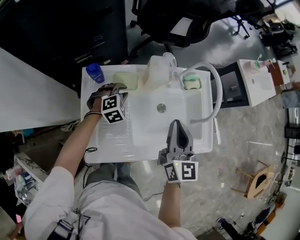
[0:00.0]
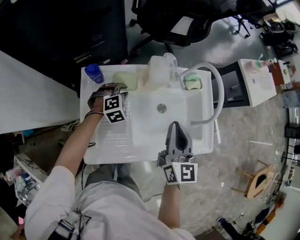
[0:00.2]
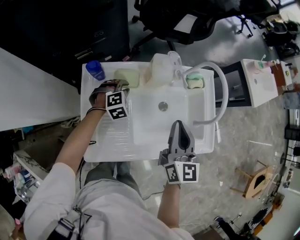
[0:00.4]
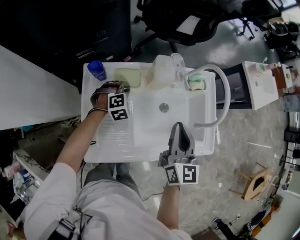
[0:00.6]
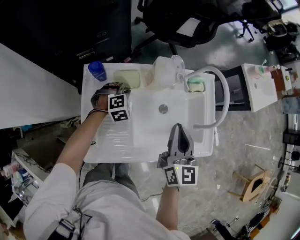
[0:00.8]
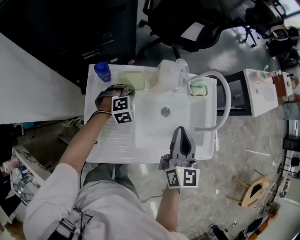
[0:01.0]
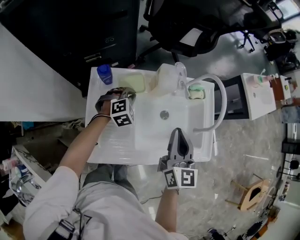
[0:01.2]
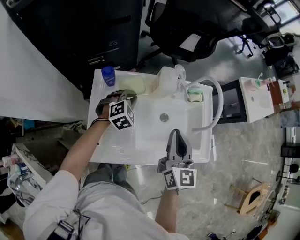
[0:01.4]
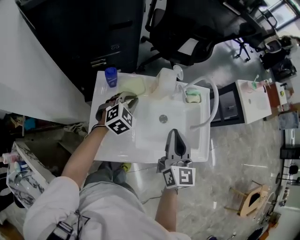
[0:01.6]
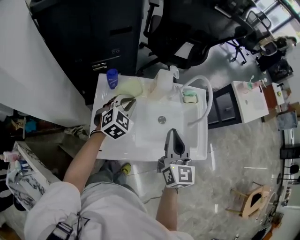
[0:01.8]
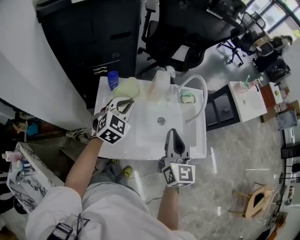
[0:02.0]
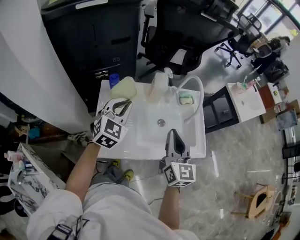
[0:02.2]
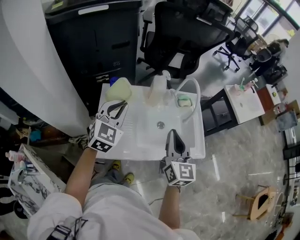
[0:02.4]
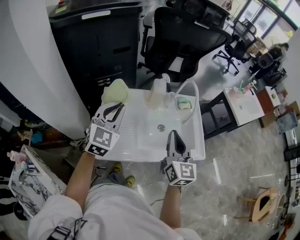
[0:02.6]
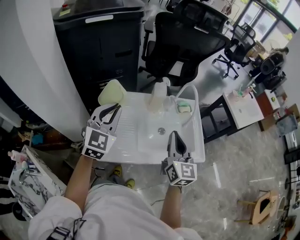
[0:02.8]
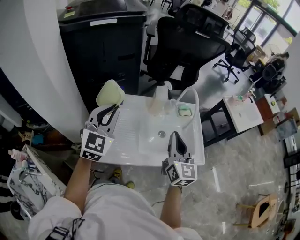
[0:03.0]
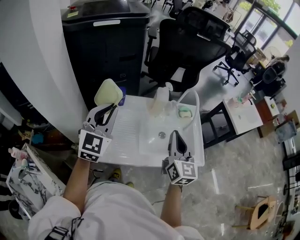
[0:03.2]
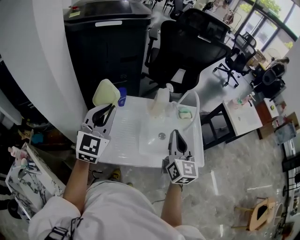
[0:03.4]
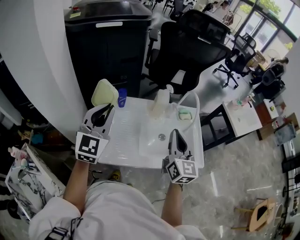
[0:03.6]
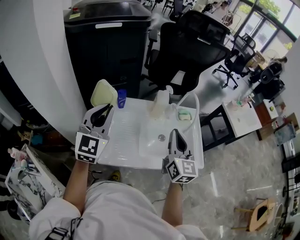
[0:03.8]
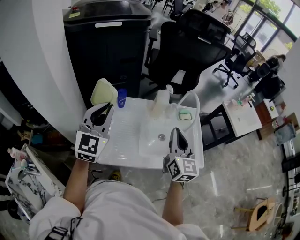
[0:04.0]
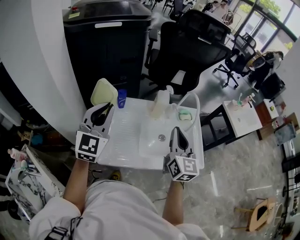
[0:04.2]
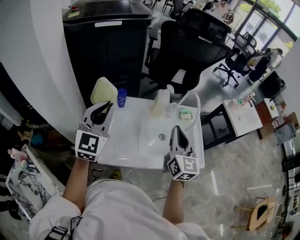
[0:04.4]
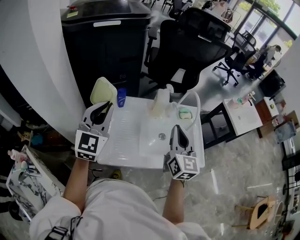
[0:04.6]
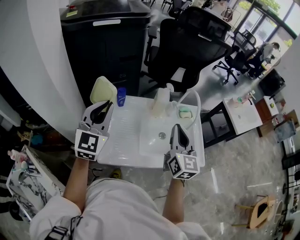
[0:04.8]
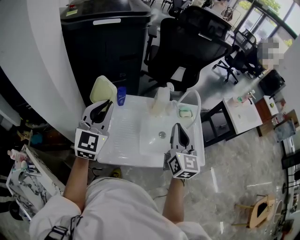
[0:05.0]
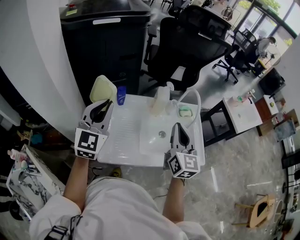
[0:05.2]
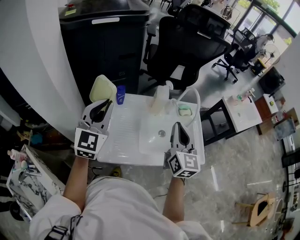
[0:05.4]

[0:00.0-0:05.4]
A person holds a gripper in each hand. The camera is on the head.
0:00.0 to 0:01.4: The left gripper shifts some 5 cm upward.
0:01.4 to 0:02.8: The left gripper travels upward and backward by some 35 cm, and points its fingers about 40 degrees further upward. The right gripper is displaced backward and upward by some 15 cm.
0:02.8 to 0:04.0: The left gripper heads to the left, covering some 5 cm.
0:04.0 to 0:05.4: The grippers stay close to where they were, moving slightly.

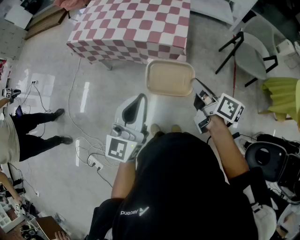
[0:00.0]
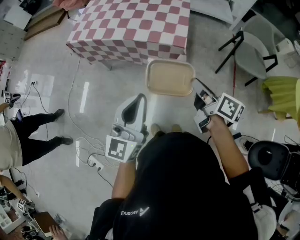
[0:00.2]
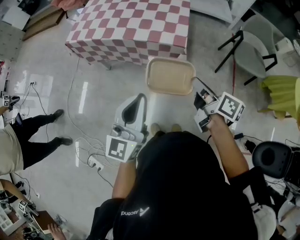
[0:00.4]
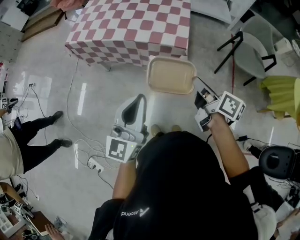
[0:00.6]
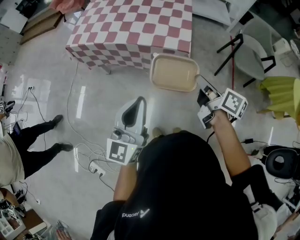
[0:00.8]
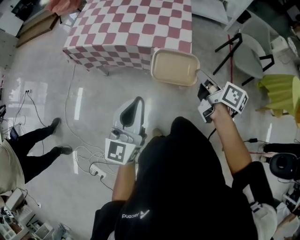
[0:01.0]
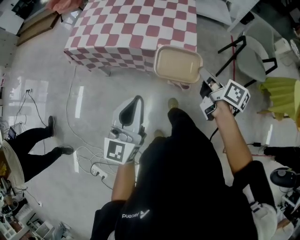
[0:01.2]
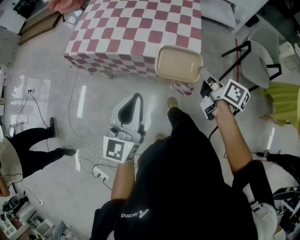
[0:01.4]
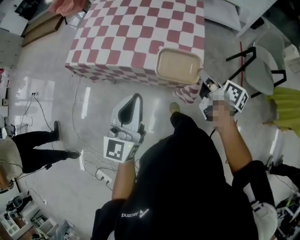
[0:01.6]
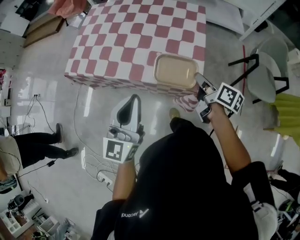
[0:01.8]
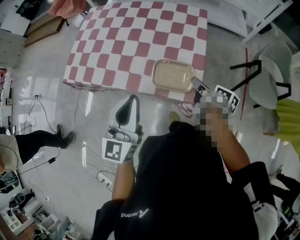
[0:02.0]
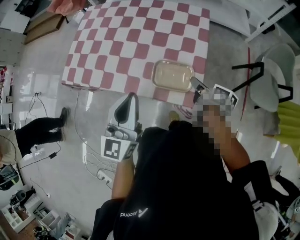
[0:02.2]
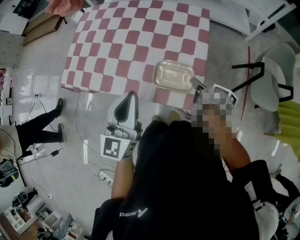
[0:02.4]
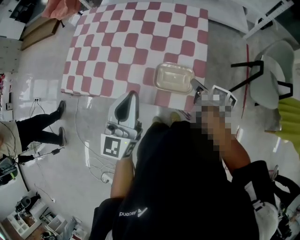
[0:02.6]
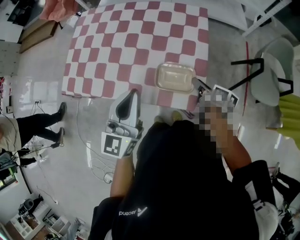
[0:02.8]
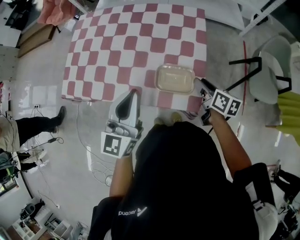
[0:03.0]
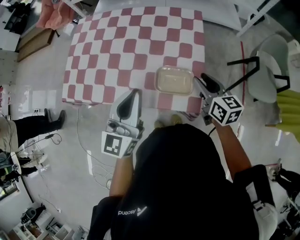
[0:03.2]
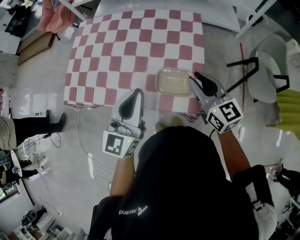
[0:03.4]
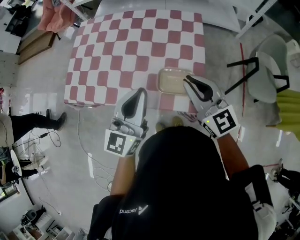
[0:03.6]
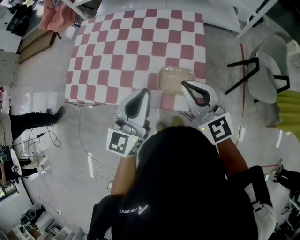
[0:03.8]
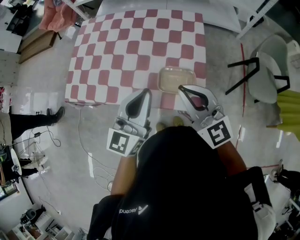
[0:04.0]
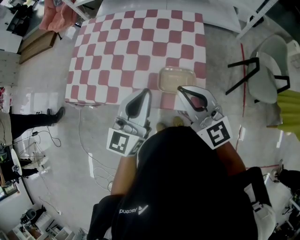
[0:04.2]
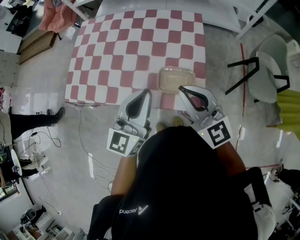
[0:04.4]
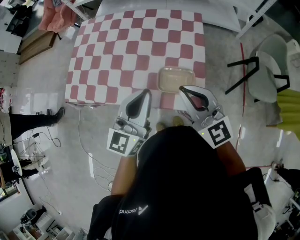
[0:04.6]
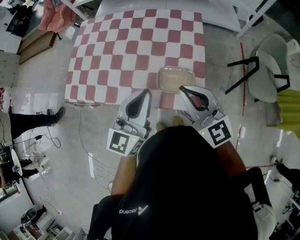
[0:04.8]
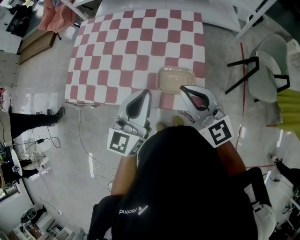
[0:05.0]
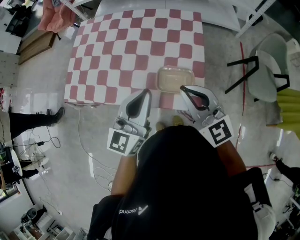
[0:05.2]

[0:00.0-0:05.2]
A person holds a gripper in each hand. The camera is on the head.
0:00.0 to 0:01.8: The right gripper swings forward and backward, some 10 cm each way, with 2 reversals; the left gripper travels to the left and forward by approximately 15 cm.
0:01.8 to 0:03.4: The right gripper shifts roughly 15 cm forward and upward, and rolls counterclockwise, seen from behind, by some 50 degrees; the left gripper is displaced forward by approximately 15 cm.
0:03.4 to 0:05.2: The right gripper goes roughly 10 cm to the left and backward, and closes.

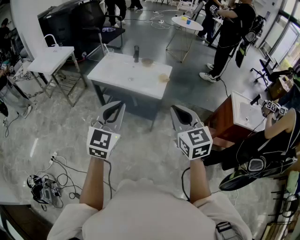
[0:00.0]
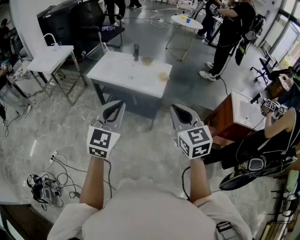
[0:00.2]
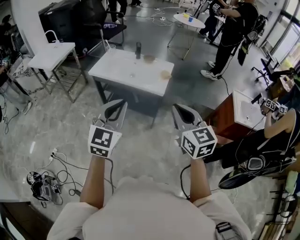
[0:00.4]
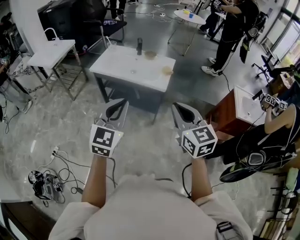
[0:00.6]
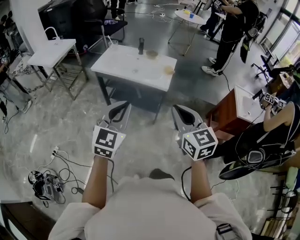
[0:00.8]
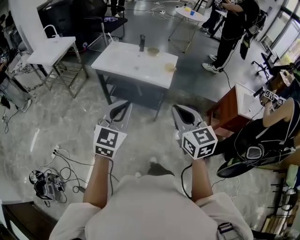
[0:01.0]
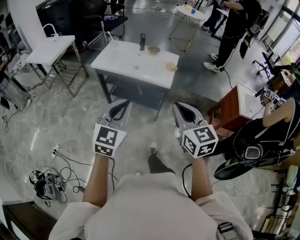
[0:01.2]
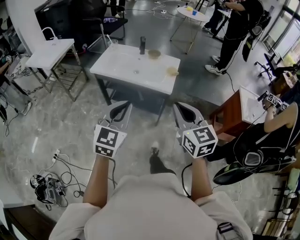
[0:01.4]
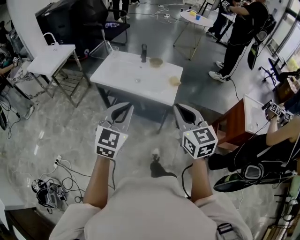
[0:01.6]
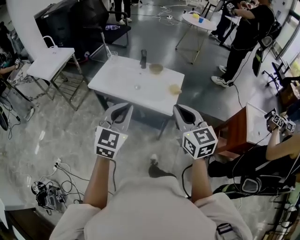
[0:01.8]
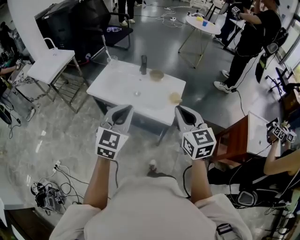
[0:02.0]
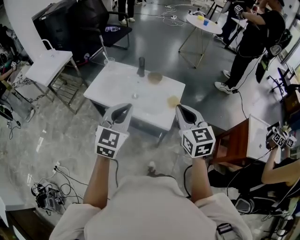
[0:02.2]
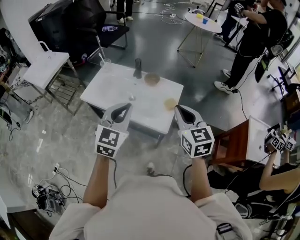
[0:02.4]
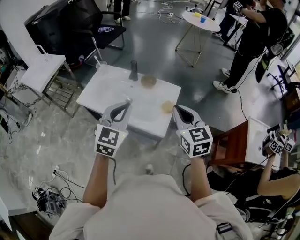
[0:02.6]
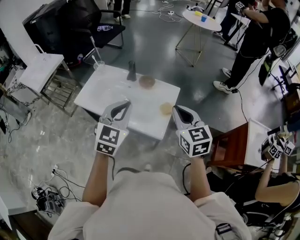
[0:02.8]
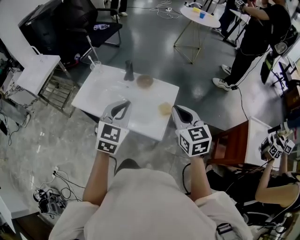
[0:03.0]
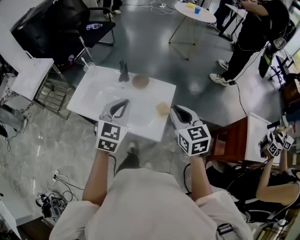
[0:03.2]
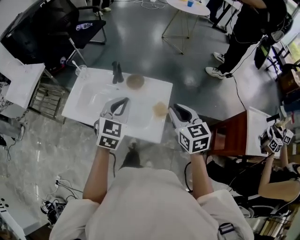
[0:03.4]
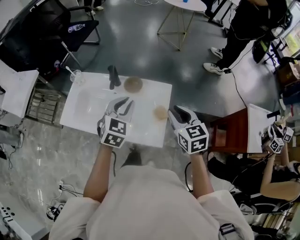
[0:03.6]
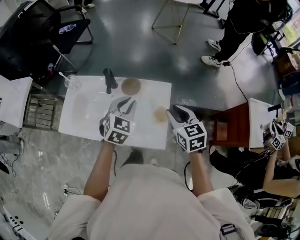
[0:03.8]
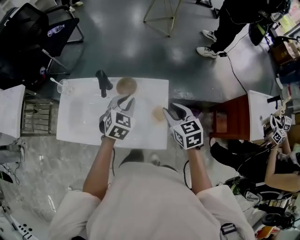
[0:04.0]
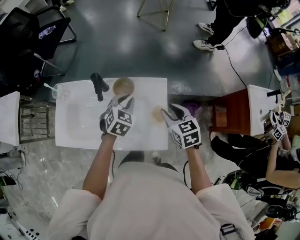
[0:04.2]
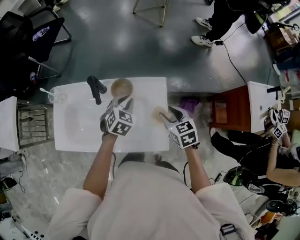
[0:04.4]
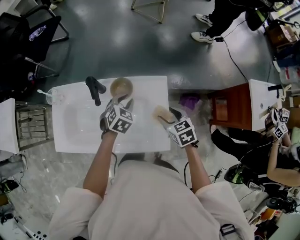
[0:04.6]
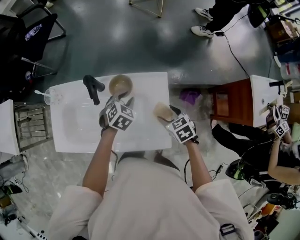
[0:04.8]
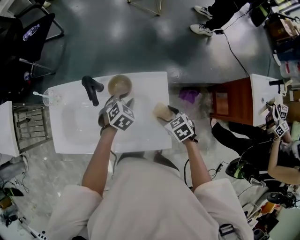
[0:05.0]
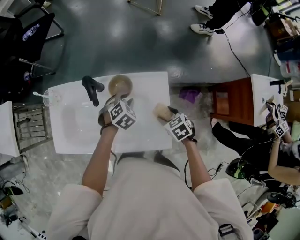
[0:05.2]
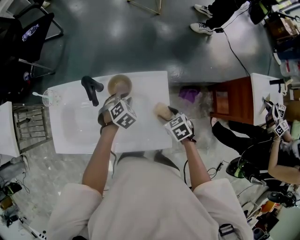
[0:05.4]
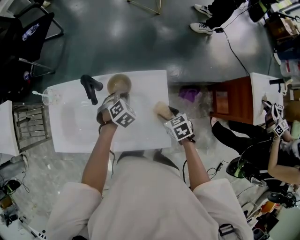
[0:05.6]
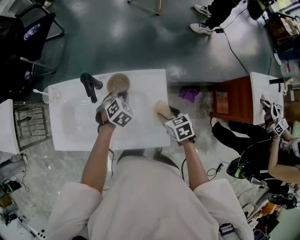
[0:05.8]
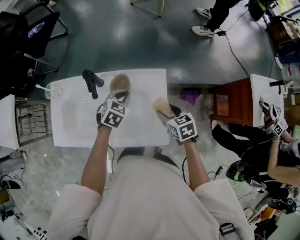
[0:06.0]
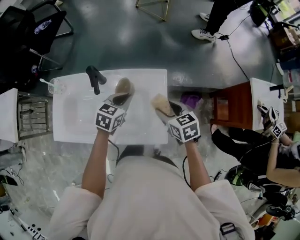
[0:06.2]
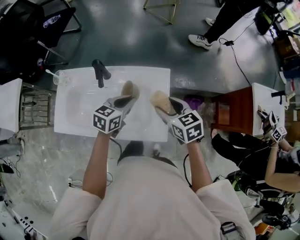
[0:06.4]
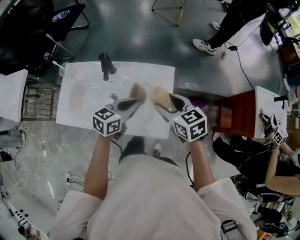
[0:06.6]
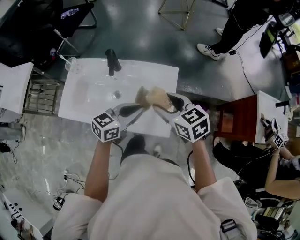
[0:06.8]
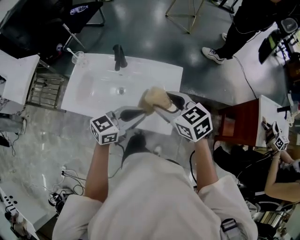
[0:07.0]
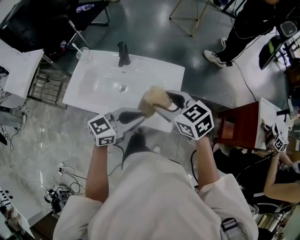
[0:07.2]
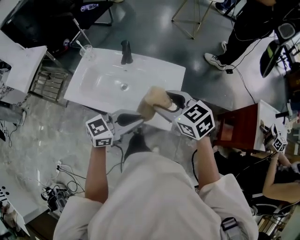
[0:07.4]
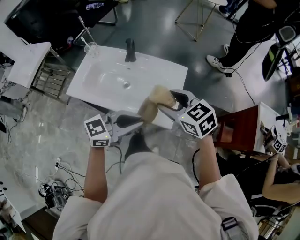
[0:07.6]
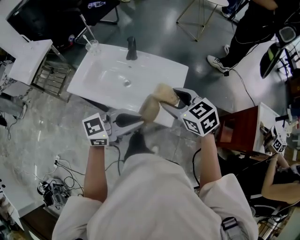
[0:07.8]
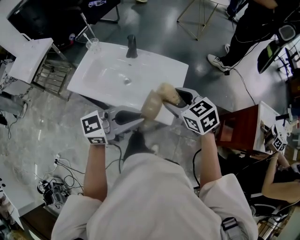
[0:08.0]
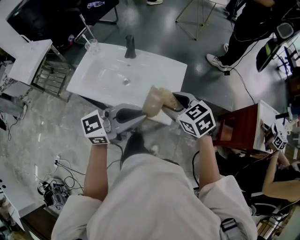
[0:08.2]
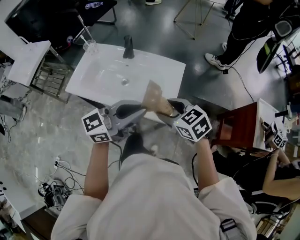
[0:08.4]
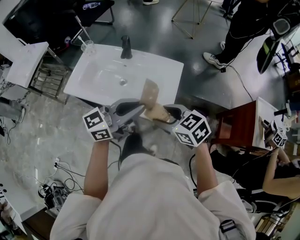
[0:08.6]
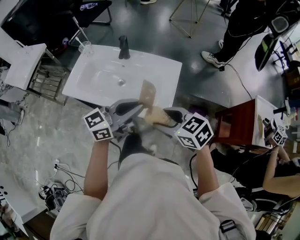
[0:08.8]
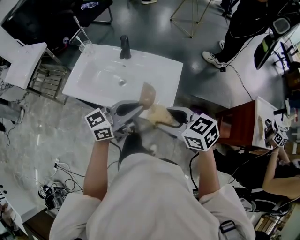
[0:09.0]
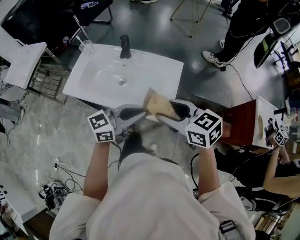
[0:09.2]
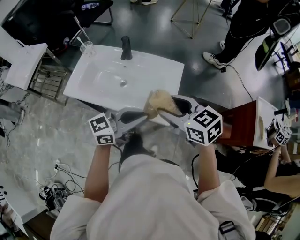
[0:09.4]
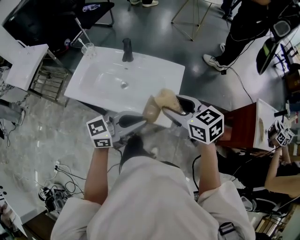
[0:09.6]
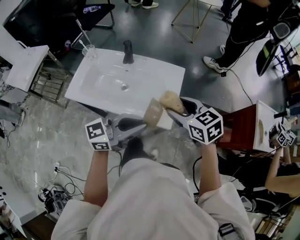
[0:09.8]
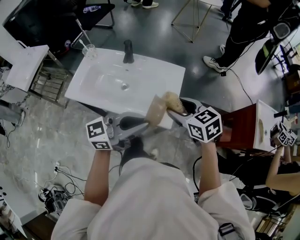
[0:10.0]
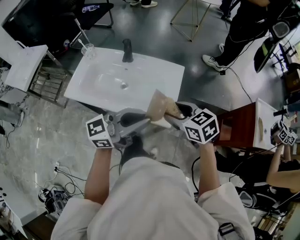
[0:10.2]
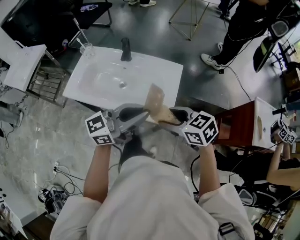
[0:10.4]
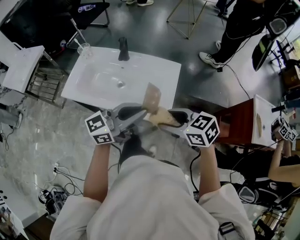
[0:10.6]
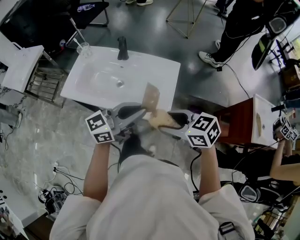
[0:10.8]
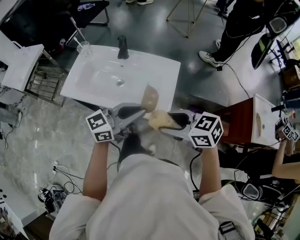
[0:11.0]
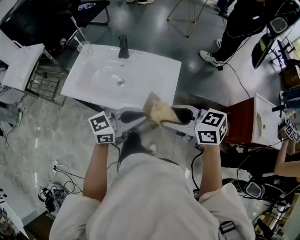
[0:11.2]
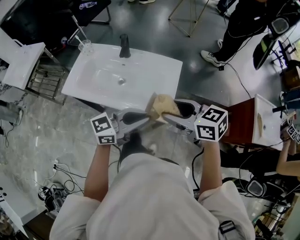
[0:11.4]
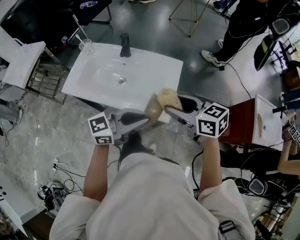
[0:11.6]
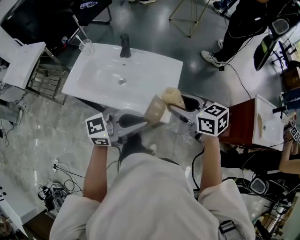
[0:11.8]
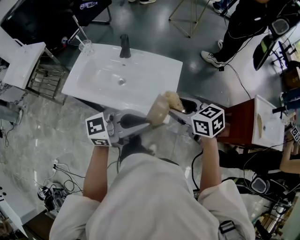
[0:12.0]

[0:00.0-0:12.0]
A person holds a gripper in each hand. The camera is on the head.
0:00.0 to 0:01.6: The left gripper travels forward and downward by roughly 15 cm. Meanwhile the right gripper shifts some 15 cm forward.
0:01.6 to 0:03.0: Both grippers move forward, roughly 35 cm.
0:03.0 to 0:04.4: The right gripper goes roughly 30 cm downward and forward, rotates roughly 30 degrees, and opens up; the left gripper heads forward and downward, covering about 40 cm, and swivels roughly 30 degrees.
0:04.4 to 0:06.0: The right gripper travels downward by roughly 5 cm.
0:06.0 to 0:07.6: The left gripper shifts some 40 cm backward and upward, and tilts its fingers approximately 40 degrees upward; the right gripper moves upward and backward, about 25 cm, and turns by about 40 degrees.
0:07.6 to 0:09.0: The right gripper travels backward by some 5 cm.
0:09.0 to 0:10.4: The left gripper moves some 5 cm.
0:10.4 to 0:12.0: The right gripper changes place by about 5 cm.

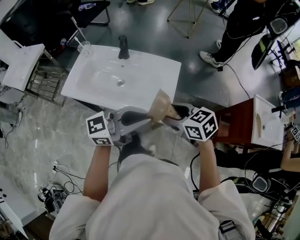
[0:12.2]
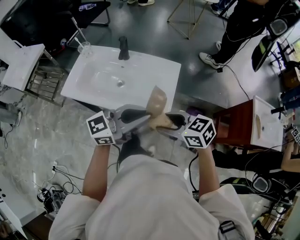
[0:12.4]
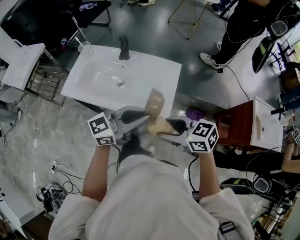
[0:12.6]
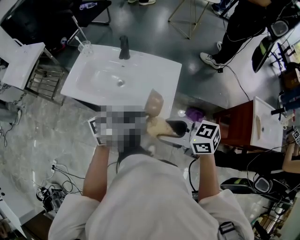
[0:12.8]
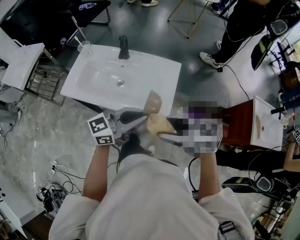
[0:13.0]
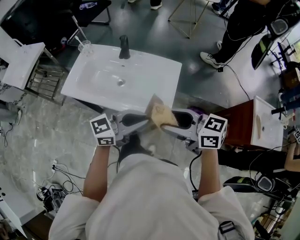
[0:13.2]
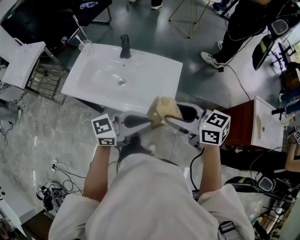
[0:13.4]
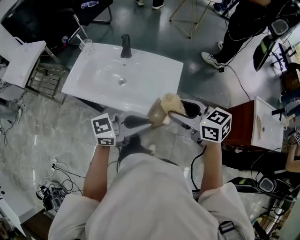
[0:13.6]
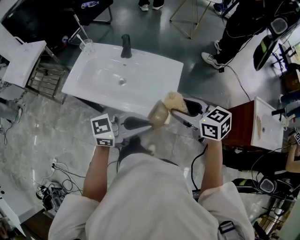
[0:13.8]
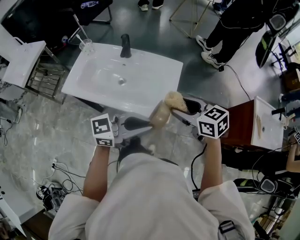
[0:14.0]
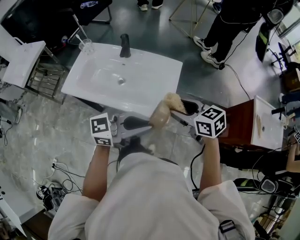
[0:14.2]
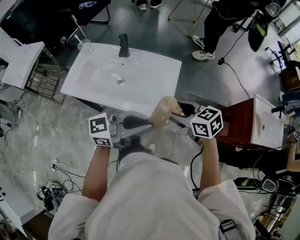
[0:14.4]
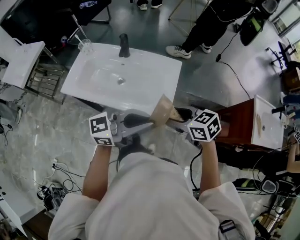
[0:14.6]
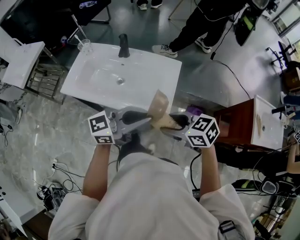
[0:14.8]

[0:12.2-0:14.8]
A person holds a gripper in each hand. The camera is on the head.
0:12.2 to 0:13.4: The right gripper goes some 5 cm upward; the left gripper travels downward by approximately 5 cm.
0:13.4 to 0:14.8: The right gripper travels downward by approximately 5 cm.
